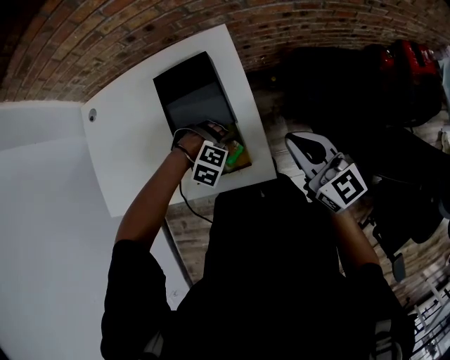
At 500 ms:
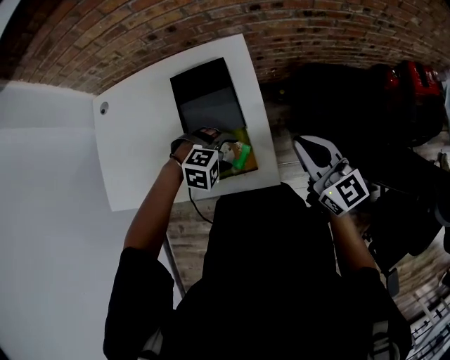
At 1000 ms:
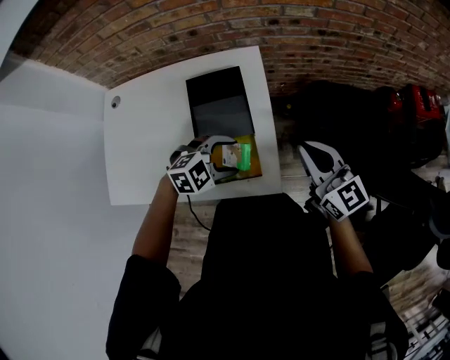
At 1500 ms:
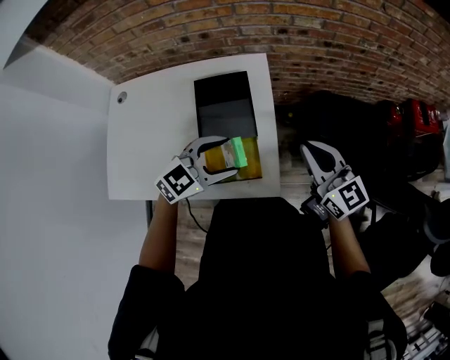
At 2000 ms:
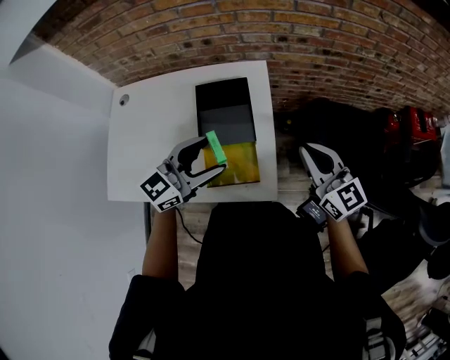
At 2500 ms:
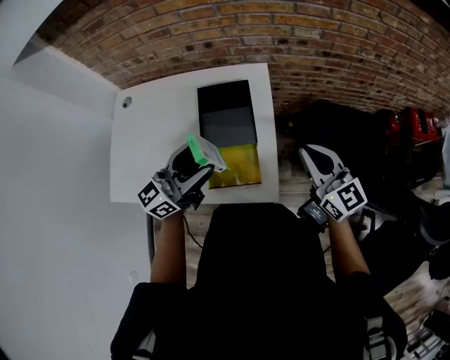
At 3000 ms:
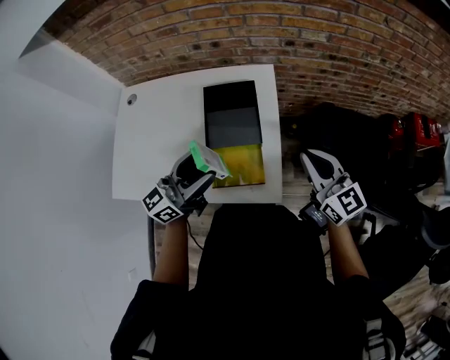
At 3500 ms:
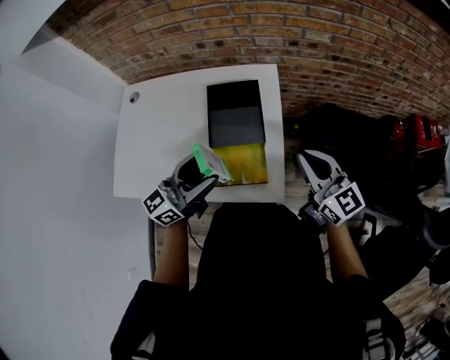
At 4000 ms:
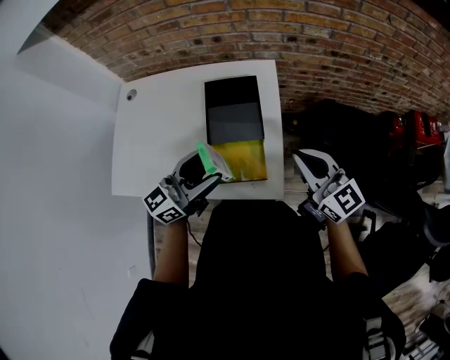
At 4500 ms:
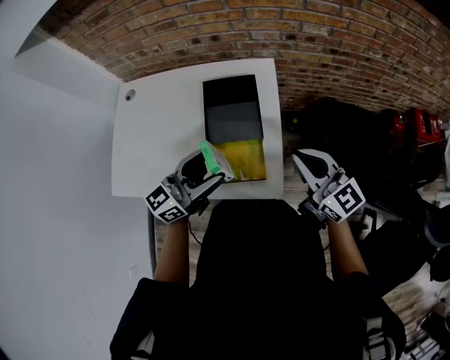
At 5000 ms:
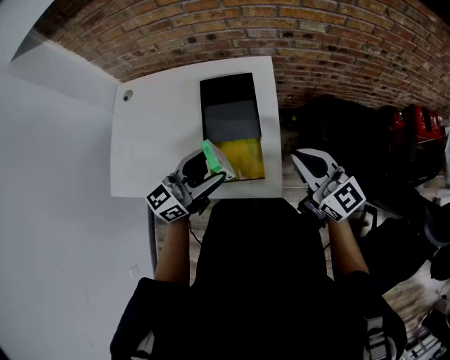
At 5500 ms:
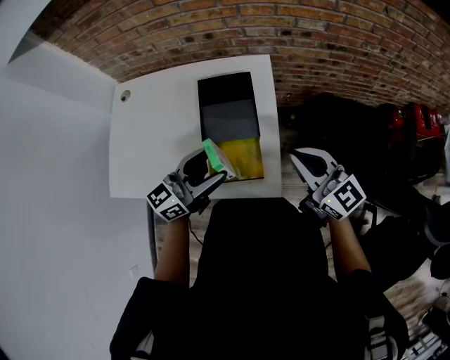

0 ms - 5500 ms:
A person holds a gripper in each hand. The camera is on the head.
0 ms - 2000 ms: The right gripper goes some 5 cm upward; the left gripper goes approximately 30 cm upward, and tilts its fingers roughly 80 degrees upward.
2000 ms - 3500 ms: The left gripper shifts by about 5 cm, and turns by approximately 30 degrees.
3500 ms - 5500 ms: The grippers make only small movements.

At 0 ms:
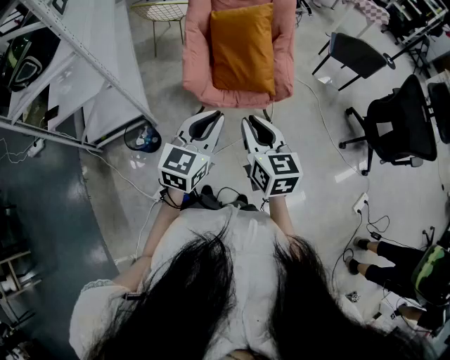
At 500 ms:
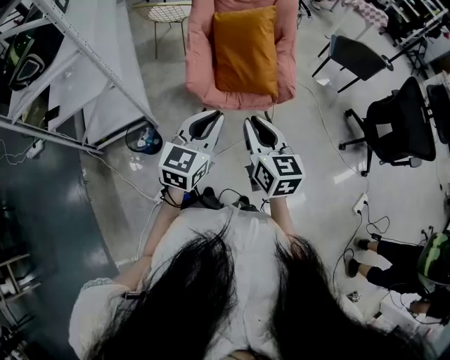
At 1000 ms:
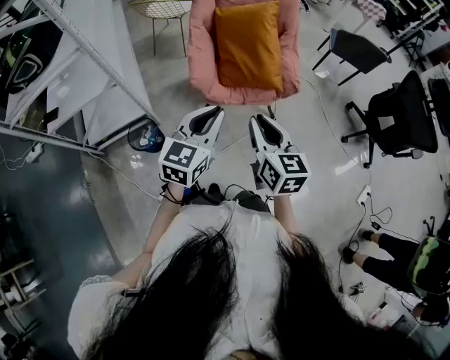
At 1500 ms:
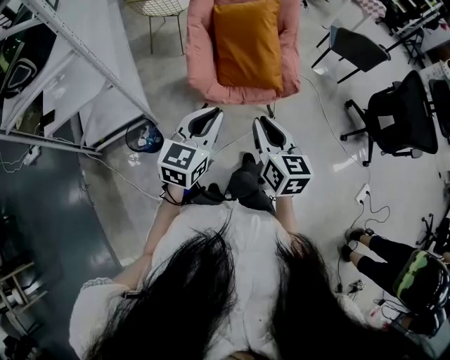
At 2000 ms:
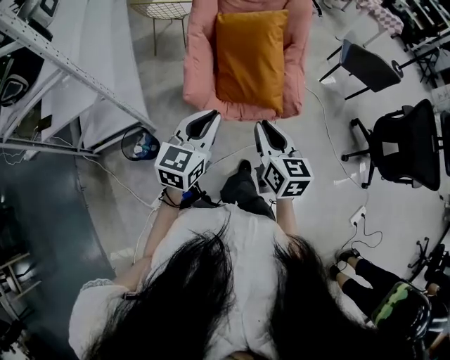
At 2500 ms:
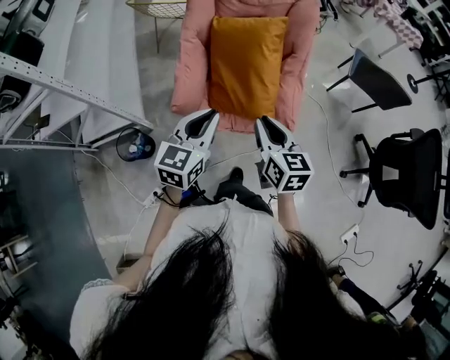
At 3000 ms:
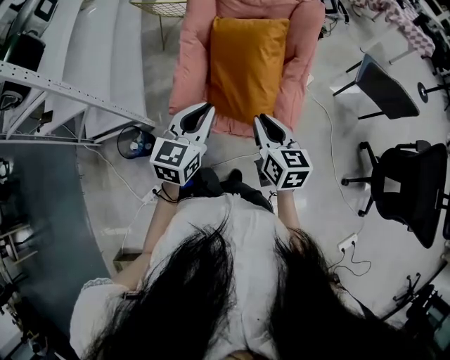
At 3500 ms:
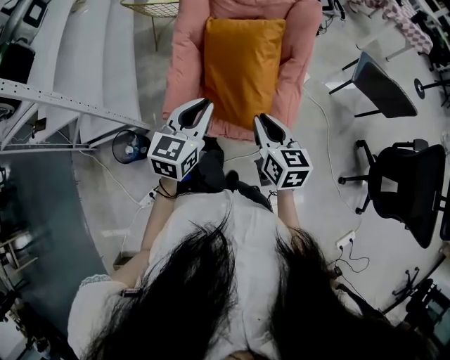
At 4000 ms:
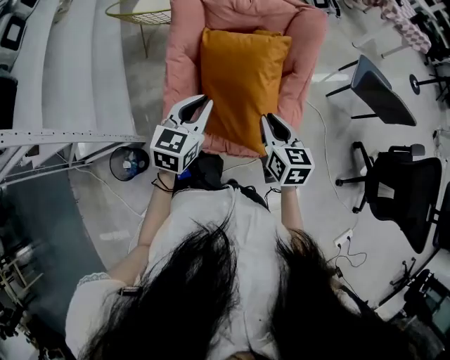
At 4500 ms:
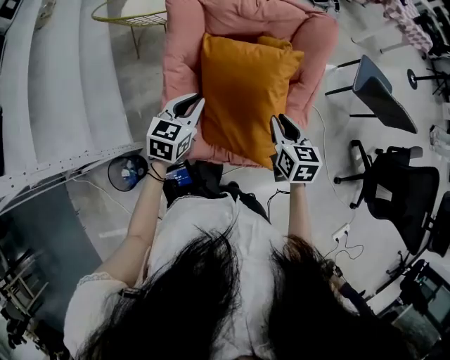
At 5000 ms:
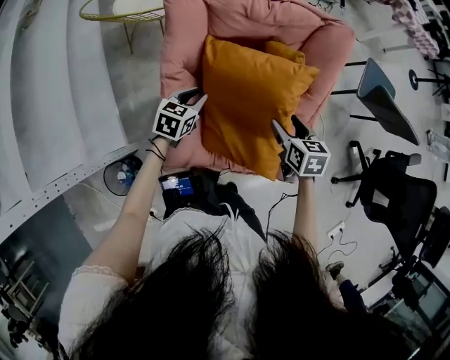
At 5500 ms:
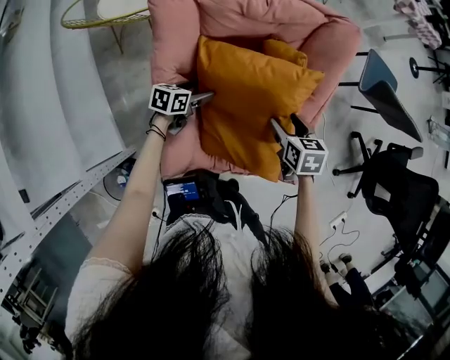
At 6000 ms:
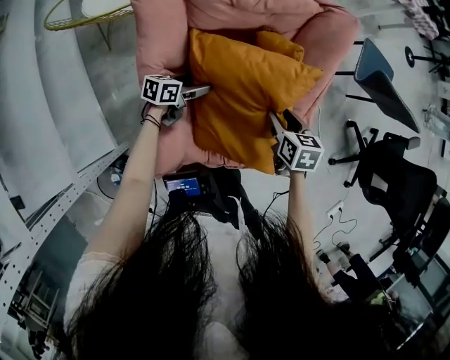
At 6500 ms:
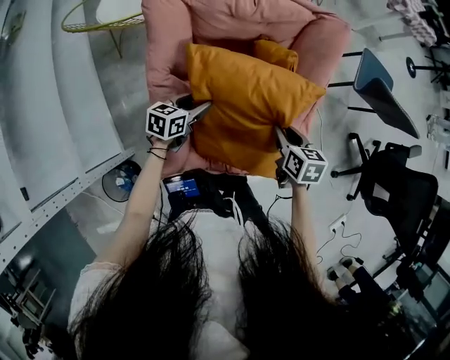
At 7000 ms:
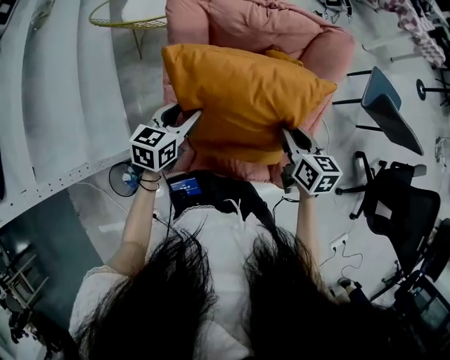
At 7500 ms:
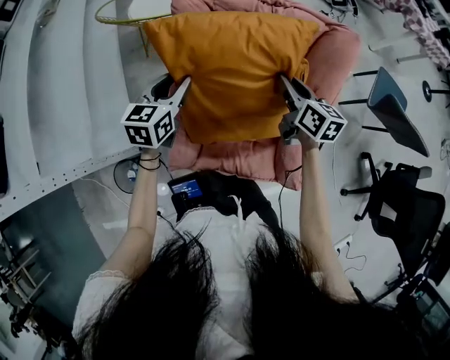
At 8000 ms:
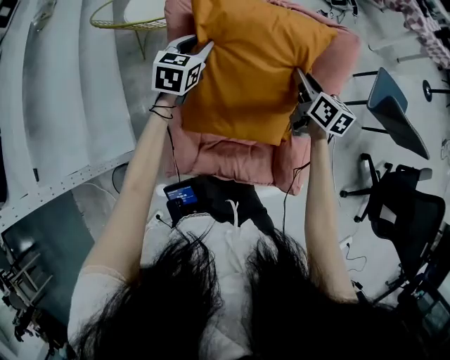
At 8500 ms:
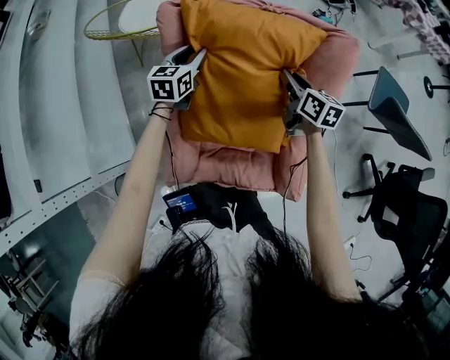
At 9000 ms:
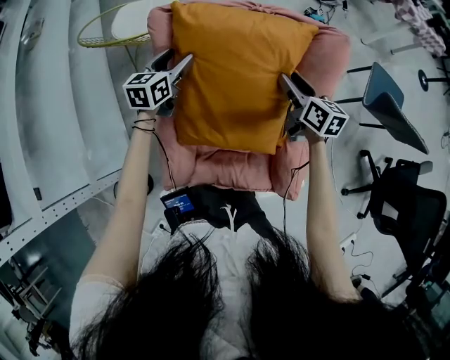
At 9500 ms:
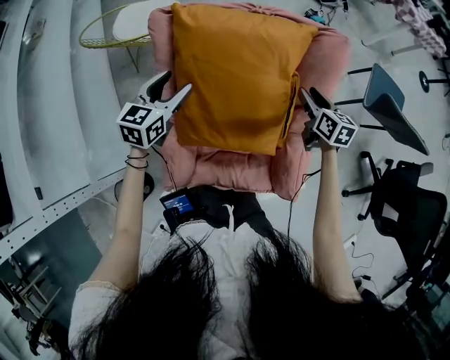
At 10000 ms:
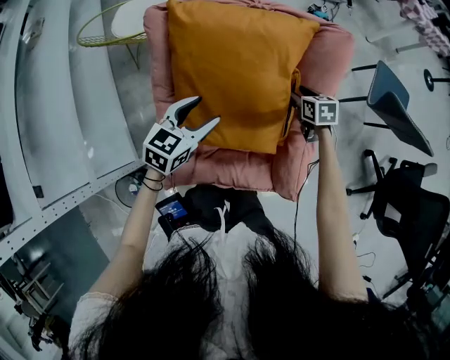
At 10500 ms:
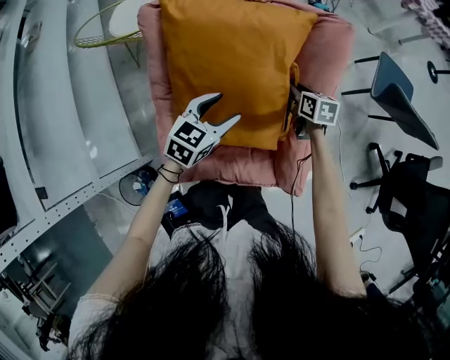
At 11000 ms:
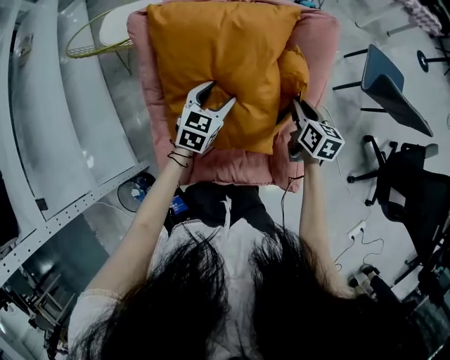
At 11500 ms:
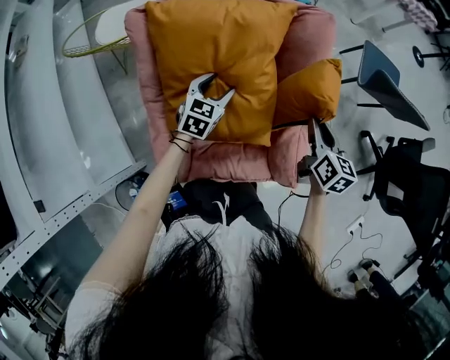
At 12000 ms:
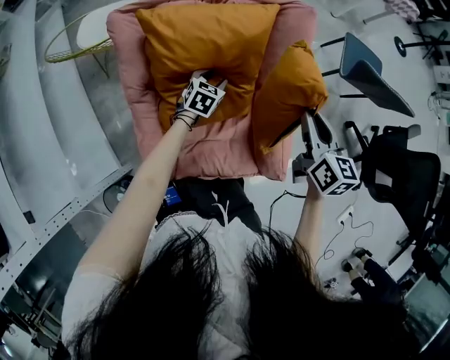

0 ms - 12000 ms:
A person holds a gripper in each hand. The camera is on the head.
0 ms - 2000 ms: Both grippers travel together forward, approximately 15 cm.
2000 ms - 4000 ms: The grippers both shift forward by approximately 30 cm.
4000 ms - 6000 ms: The left gripper moves downward, roughly 30 cm, changes its angle by approximately 50 degrees, and opens. Meanwhile the right gripper moves approximately 20 cm, swivels approximately 30 degrees, and opens.
6000 ms - 8000 ms: The right gripper ends up about 20 cm from where it was, rotates about 30 degrees, and closes its fingers. The left gripper travels upward by some 25 cm, turns by some 50 degrees, and closes its fingers.
8000 ms - 10000 ms: The right gripper moves downward and to the right, some 15 cm, changes its angle by some 30 degrees, and opens. Meanwhile the left gripper shifts roughly 15 cm backward and to the right.
10000 ms - 12000 ms: The right gripper shifts about 25 cm upward and backward, swivels some 40 degrees, and closes its fingers, while the left gripper heads downward, forward and to the right, covering roughly 20 cm.

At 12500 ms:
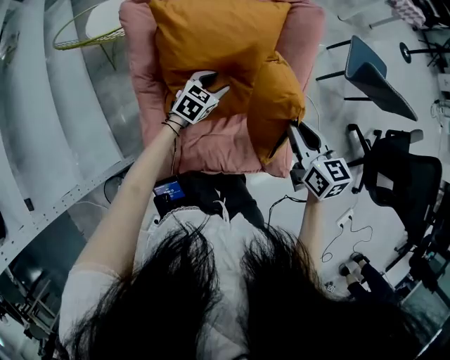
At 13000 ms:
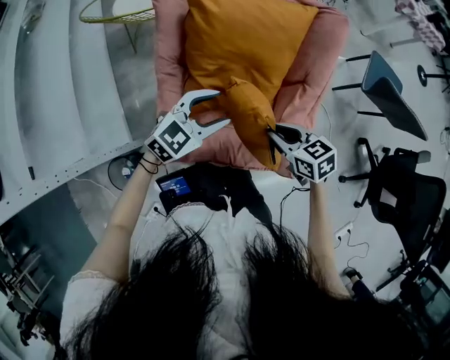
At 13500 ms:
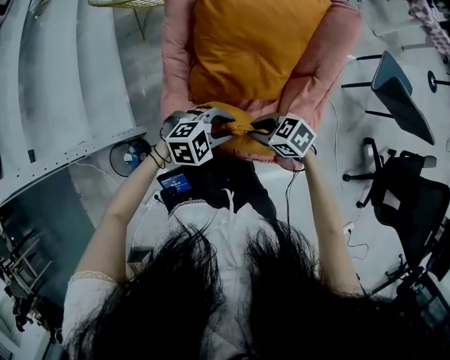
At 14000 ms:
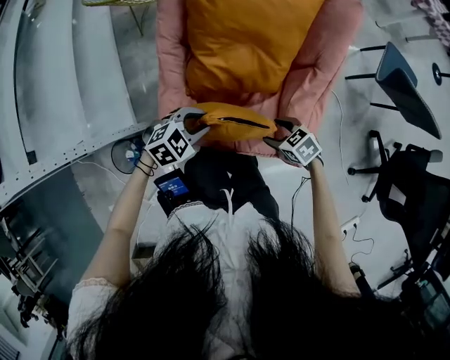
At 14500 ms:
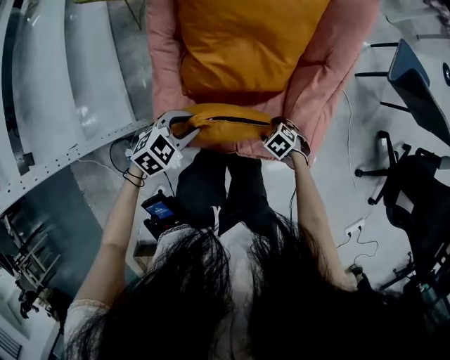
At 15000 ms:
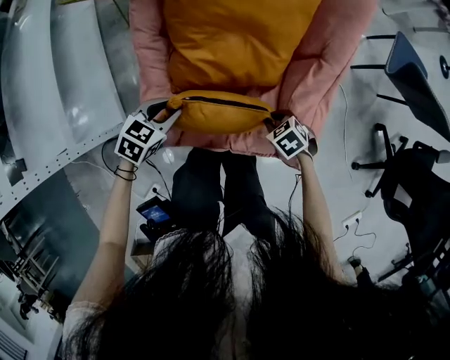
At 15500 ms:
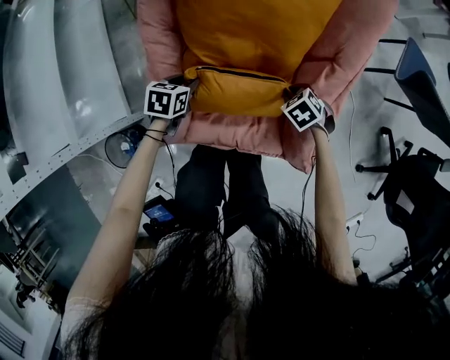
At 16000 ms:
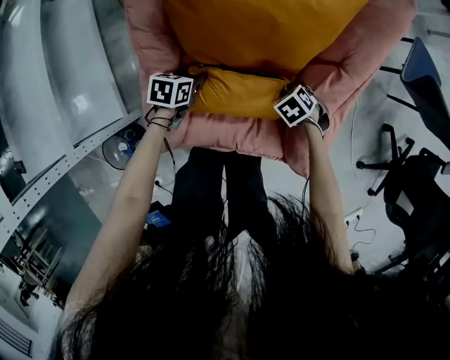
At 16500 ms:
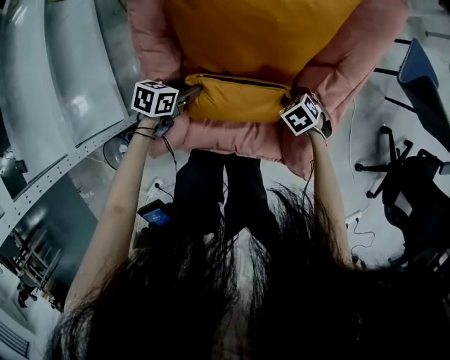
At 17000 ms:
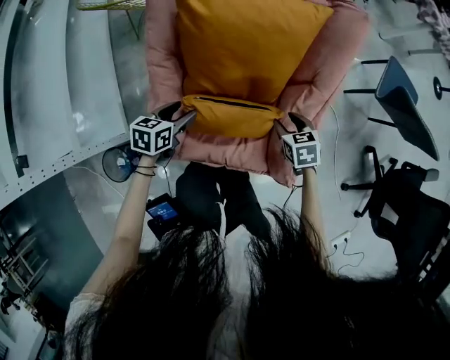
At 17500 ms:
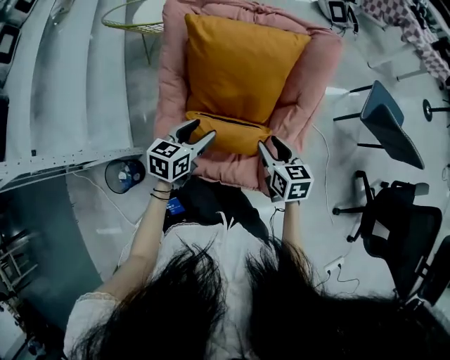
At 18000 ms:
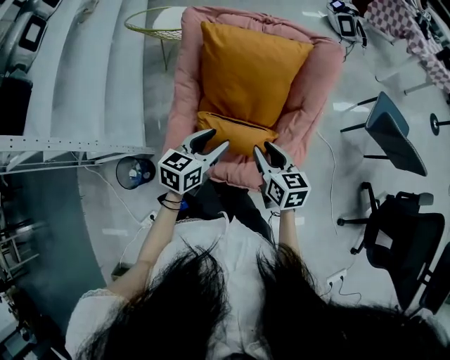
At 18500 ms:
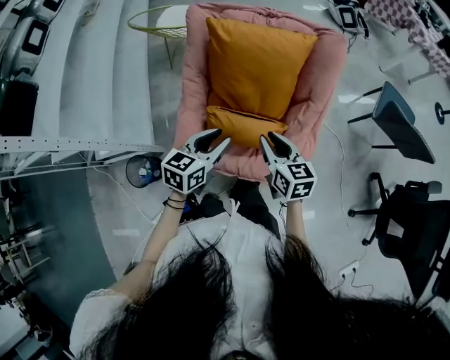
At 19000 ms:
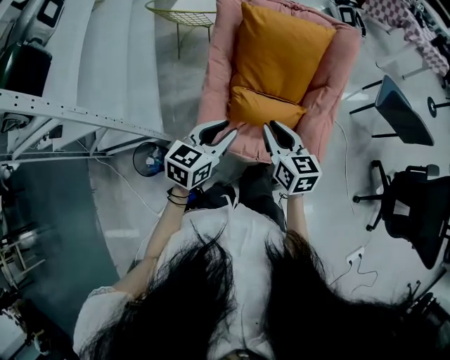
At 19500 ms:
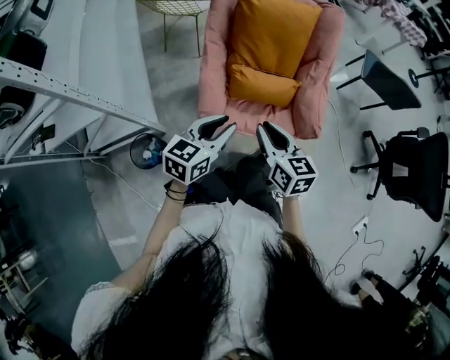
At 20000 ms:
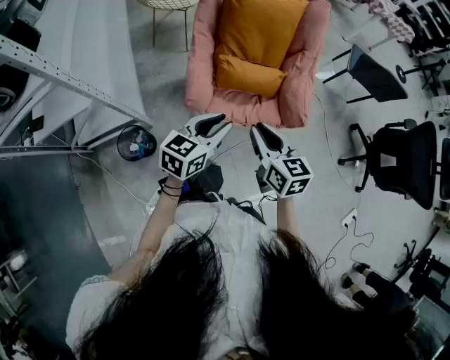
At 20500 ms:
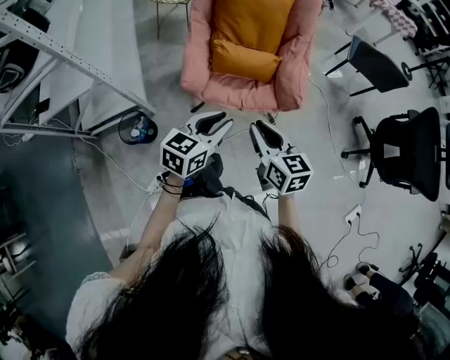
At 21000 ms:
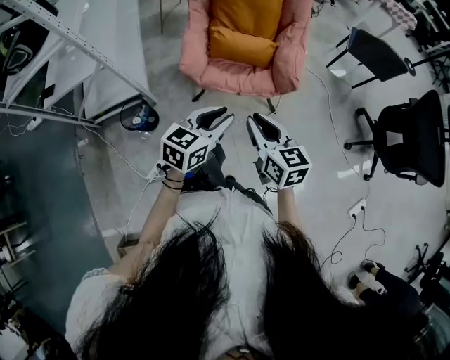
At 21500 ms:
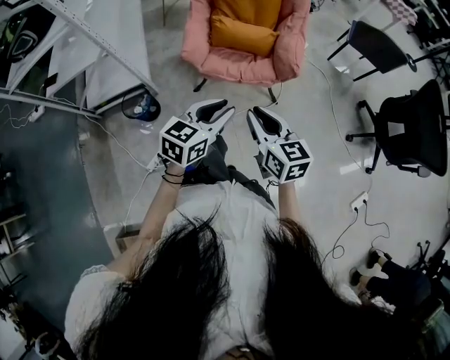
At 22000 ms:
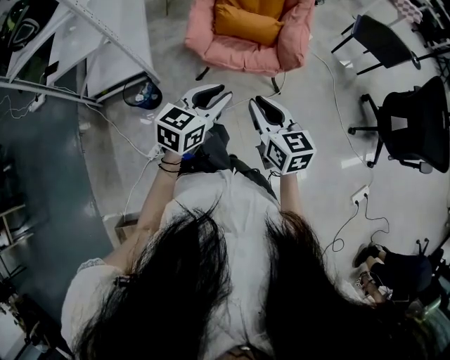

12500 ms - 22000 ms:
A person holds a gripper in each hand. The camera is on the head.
12500 ms - 14500 ms: The left gripper travels upward and back again, some 15 cm each way, while the right gripper moves downward, approximately 40 cm, points its fingers approximately 50 degrees further downward, and opens.
14500 ms - 16500 ms: The right gripper shifts by roughly 15 cm, and closes; the left gripper goes about 15 cm downward, and rotates around the line of its fingers by some 40 degrees, counterclockwise from behind.
16500 ms - 18000 ms: Both grippers travel together upward, about 30 cm. The right gripper points its fingers approximately 50 degrees further upward. The left gripper turns by roughly 30 degrees.
18000 ms - 20000 ms: Both grippers move backward and to the left, approximately 30 cm.
20000 ms - 22000 ms: Both grippers move backward and to the right, some 25 cm.
